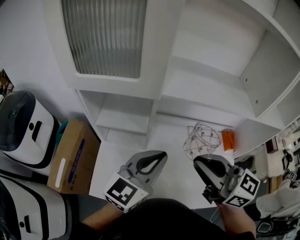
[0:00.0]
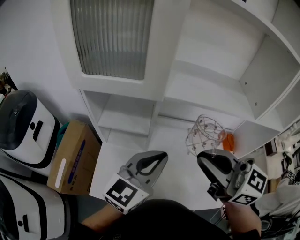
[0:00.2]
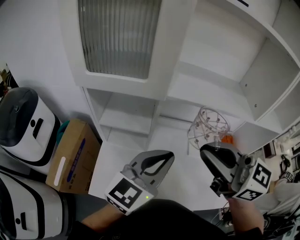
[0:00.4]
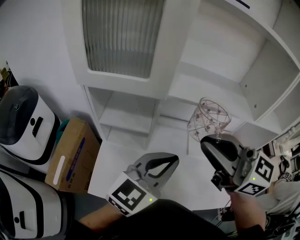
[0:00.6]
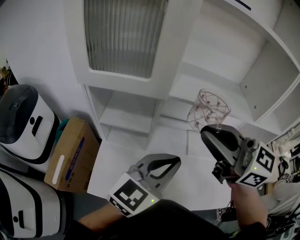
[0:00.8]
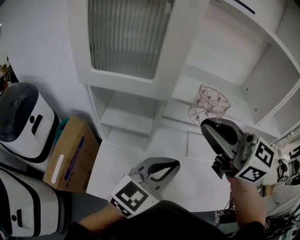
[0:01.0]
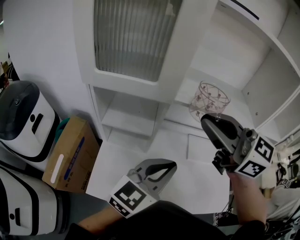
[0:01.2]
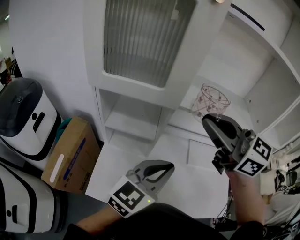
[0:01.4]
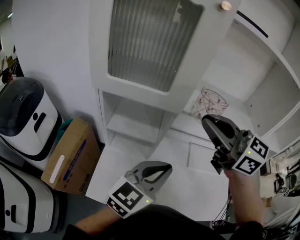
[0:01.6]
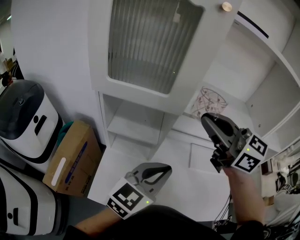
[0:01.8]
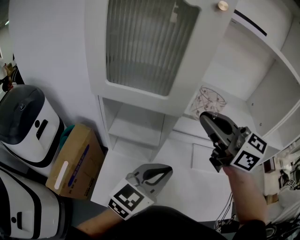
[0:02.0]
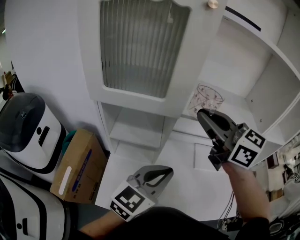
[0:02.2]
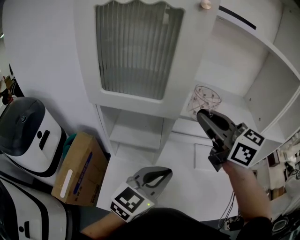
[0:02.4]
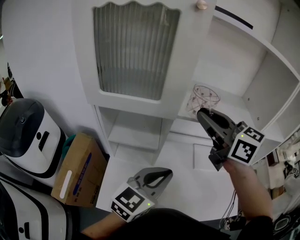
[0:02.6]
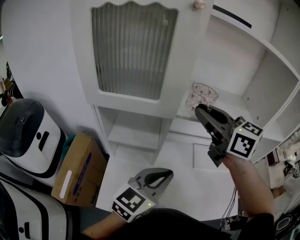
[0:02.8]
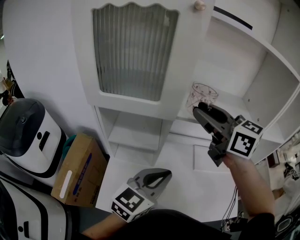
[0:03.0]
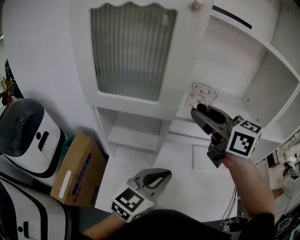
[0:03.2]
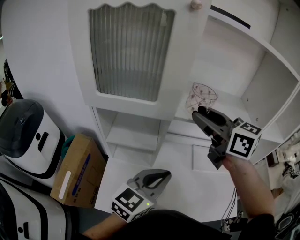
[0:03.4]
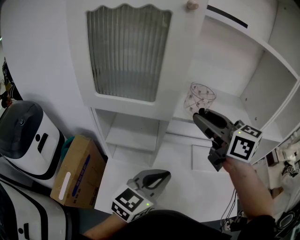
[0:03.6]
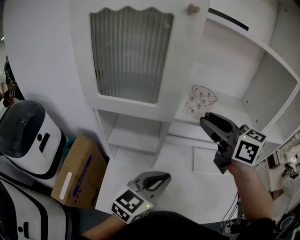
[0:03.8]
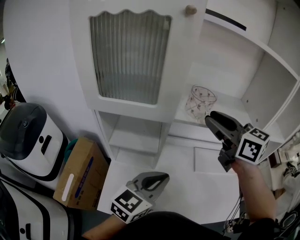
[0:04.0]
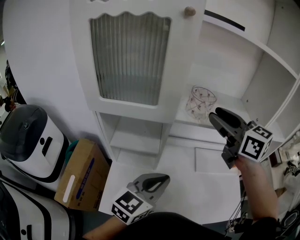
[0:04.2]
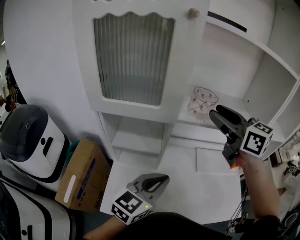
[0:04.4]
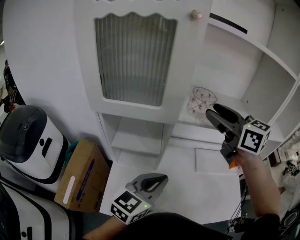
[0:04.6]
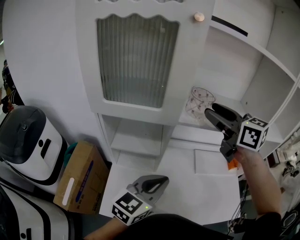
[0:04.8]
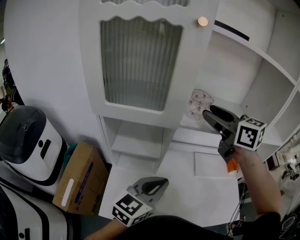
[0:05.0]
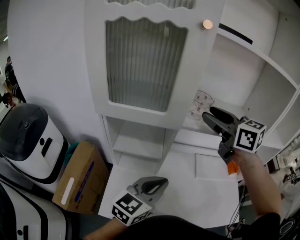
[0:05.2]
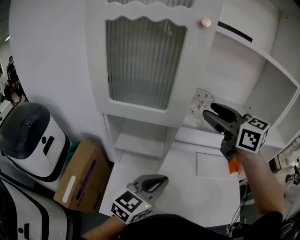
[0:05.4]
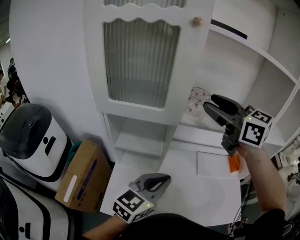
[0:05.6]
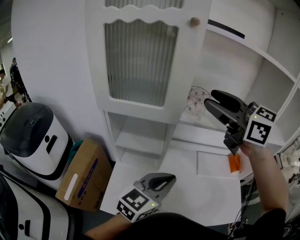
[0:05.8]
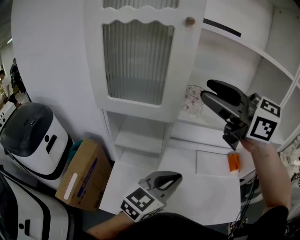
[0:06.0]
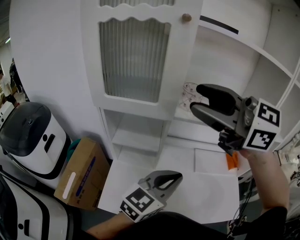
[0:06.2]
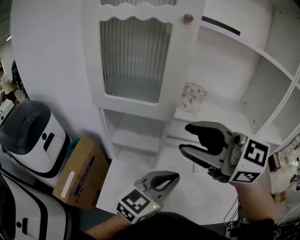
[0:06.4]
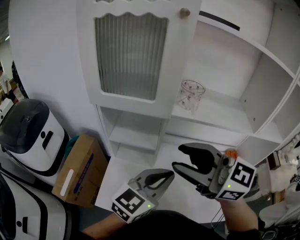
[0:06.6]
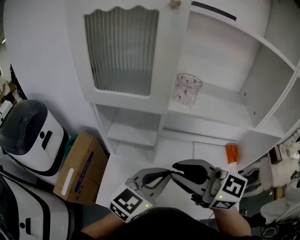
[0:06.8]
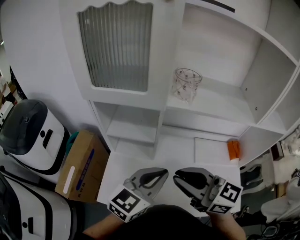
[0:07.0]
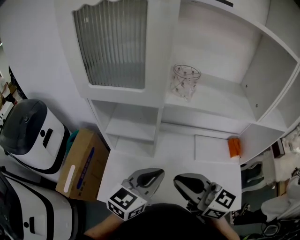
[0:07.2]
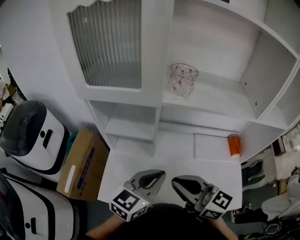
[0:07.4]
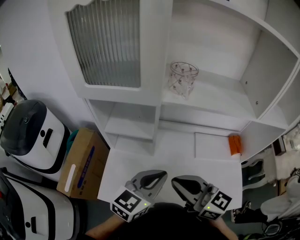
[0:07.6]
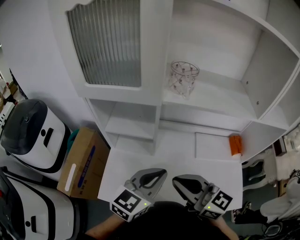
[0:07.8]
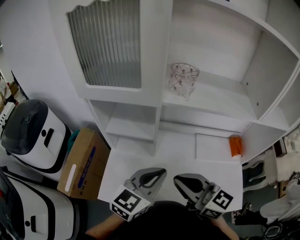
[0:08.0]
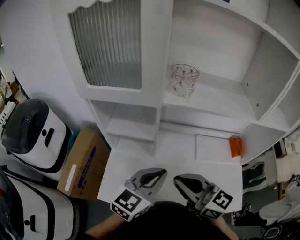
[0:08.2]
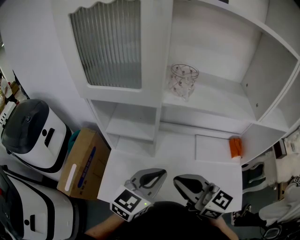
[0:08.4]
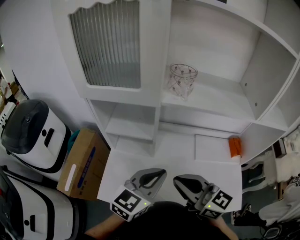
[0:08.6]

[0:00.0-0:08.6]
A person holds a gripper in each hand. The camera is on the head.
0:00.0 to 0:01.4: The right gripper goes approximately 15 cm upward and forward.
0:01.4 to 0:02.8: The right gripper shifts about 5 cm forward.
0:02.8 to 0:04.4: The right gripper travels to the right by about 5 cm, and opens.
0:04.4 to 0:05.8: The right gripper goes about 10 cm upward and to the left.
0:05.8 to 0:07.2: The right gripper heads downward and backward, covering approximately 30 cm, rotates about 20 degrees, and closes its fingers.
0:07.2 to 0:08.6: The grippers make only small movements.

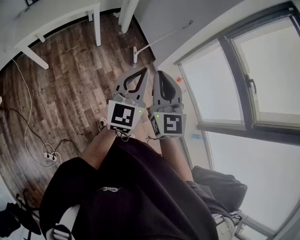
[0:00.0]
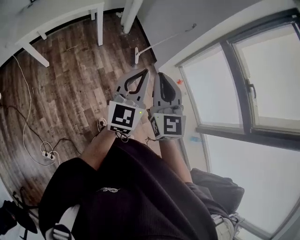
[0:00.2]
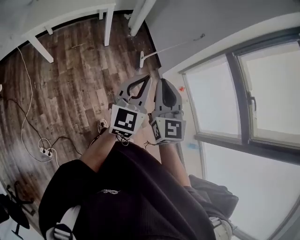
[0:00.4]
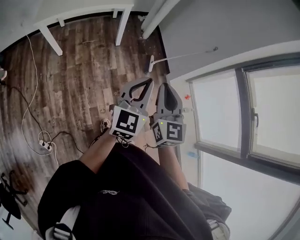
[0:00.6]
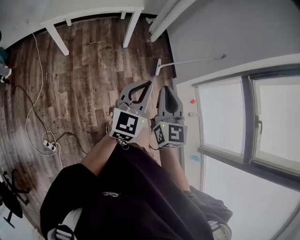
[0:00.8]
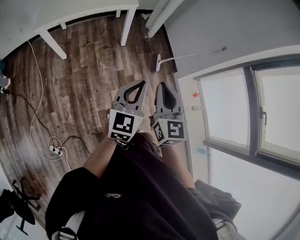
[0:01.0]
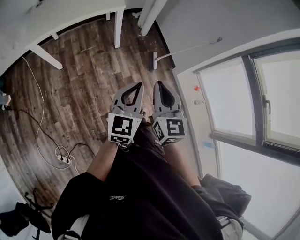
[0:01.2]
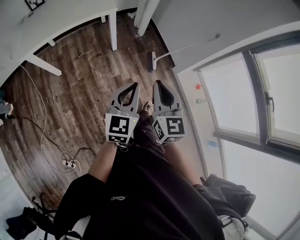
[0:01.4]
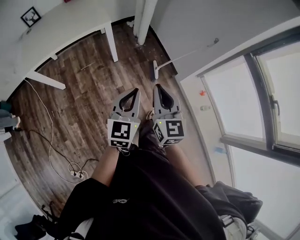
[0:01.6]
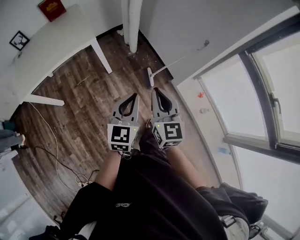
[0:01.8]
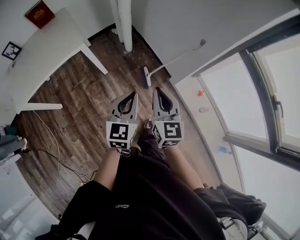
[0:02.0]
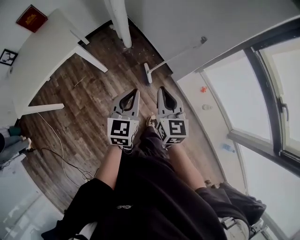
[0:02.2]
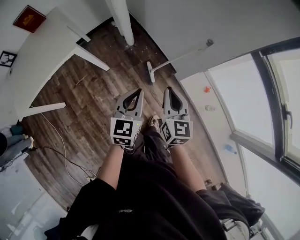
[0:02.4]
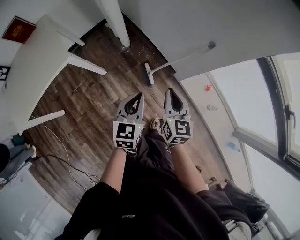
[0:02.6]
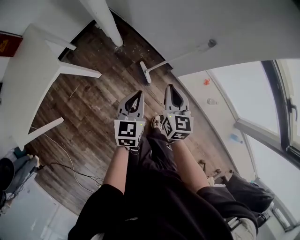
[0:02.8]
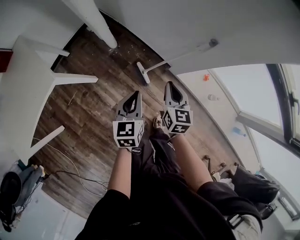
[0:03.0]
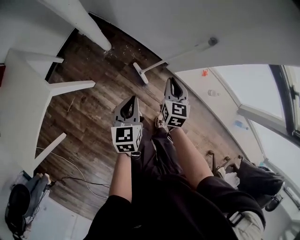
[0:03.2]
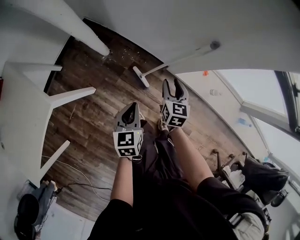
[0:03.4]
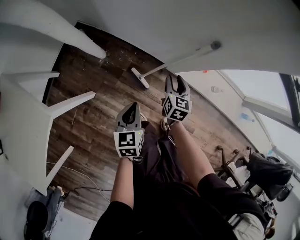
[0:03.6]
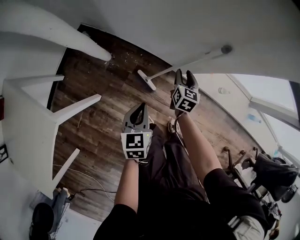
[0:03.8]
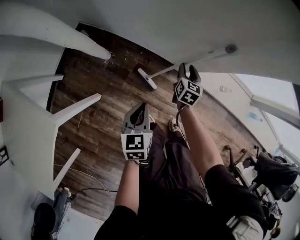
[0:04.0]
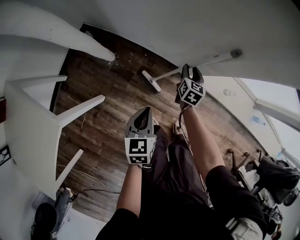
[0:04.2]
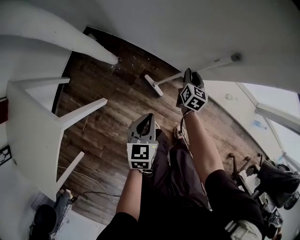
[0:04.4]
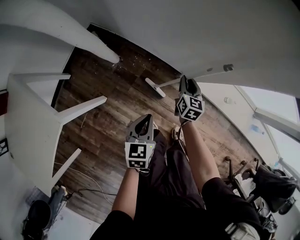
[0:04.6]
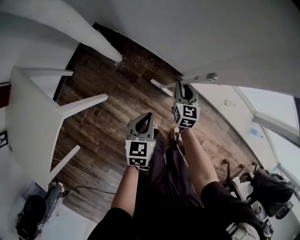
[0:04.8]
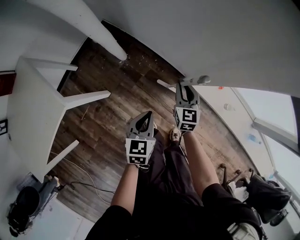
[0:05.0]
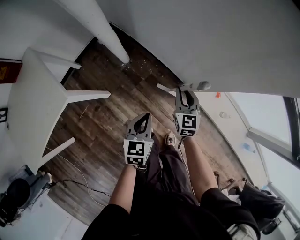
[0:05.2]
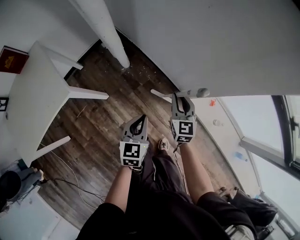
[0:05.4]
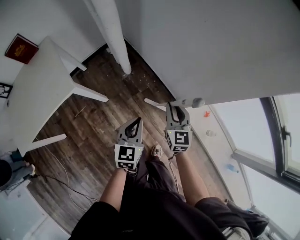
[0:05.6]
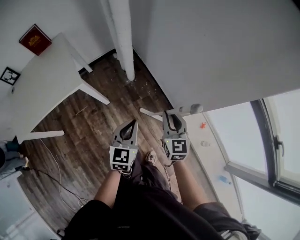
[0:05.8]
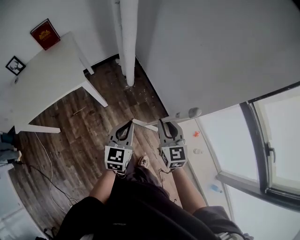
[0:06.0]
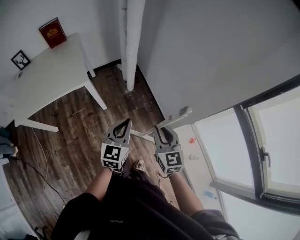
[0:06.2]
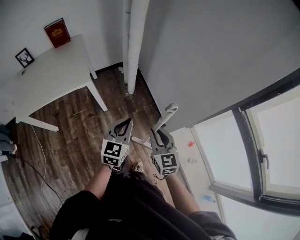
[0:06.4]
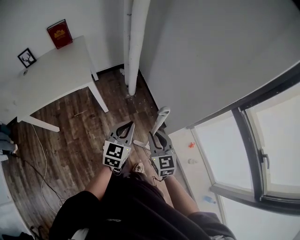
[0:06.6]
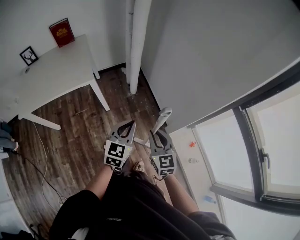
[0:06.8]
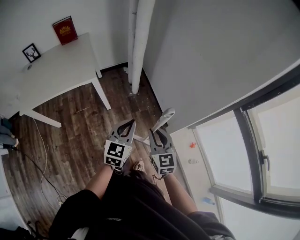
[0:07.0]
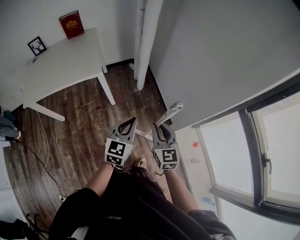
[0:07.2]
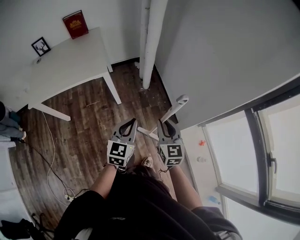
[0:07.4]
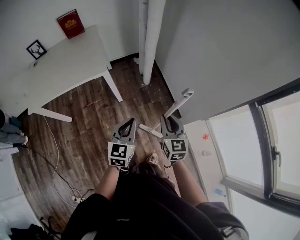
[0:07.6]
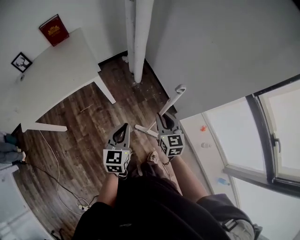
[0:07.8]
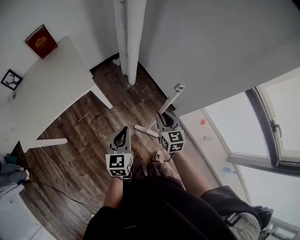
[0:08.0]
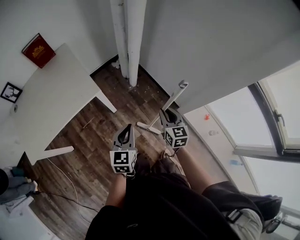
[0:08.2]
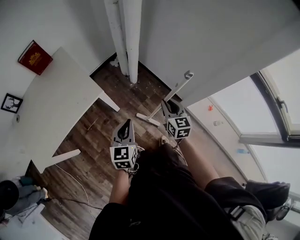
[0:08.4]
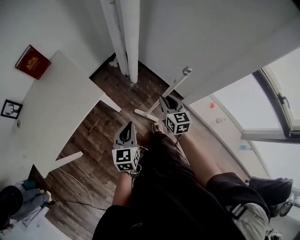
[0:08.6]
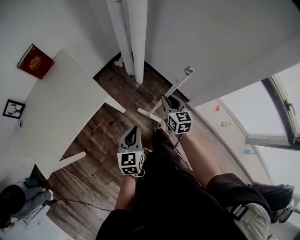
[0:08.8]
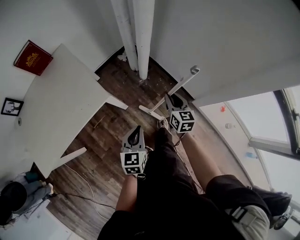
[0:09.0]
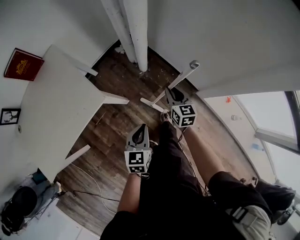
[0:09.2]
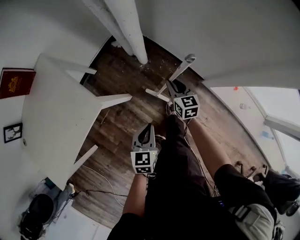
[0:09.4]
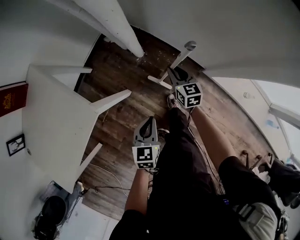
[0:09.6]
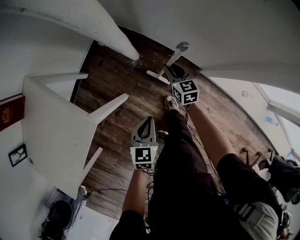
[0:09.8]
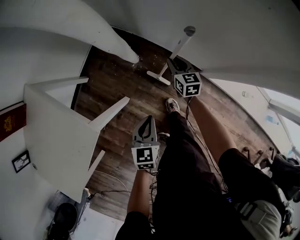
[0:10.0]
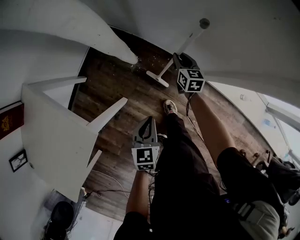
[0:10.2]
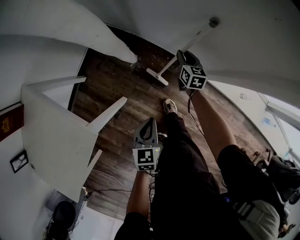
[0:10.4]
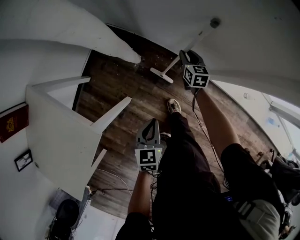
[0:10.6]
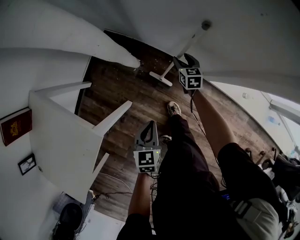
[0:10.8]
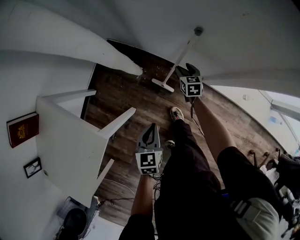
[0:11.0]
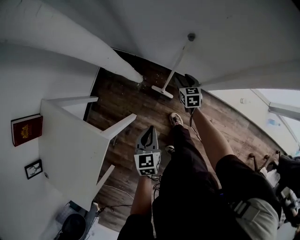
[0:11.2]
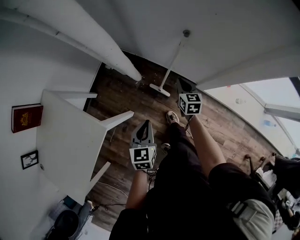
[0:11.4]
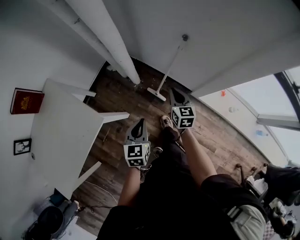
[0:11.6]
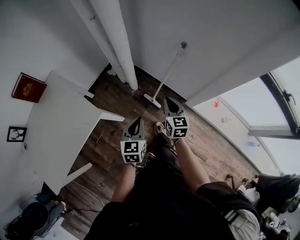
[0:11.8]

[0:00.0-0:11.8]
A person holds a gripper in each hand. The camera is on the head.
0:00.0 to 0:01.4: Both grippers travel together to the left, forward and downward, approximately 20 cm.
0:01.4 to 0:03.0: Both grippers are carried forward, approximately 40 cm. The two grippers go approximately 25 cm downward. The left gripper changes its angle by some 20 degrees; the right gripper swivels approximately 40 degrees.
0:03.0 to 0:04.4: The right gripper travels downward and forward by roughly 25 cm, and swivels about 30 degrees. Meanwhile the left gripper shifts approximately 10 cm downward.
0:04.4 to 0:06.0: The left gripper moves upward, about 25 cm, and rotates roughly 30 degrees. Meanwhile the right gripper heads upward, covering some 35 cm, and turns by roughly 60 degrees.
0:06.0 to 0:07.4: The left gripper shifts some 5 cm backward, while the right gripper shifts about 10 cm to the left and backward.
0:07.4 to 0:08.8: The right gripper heads forward, to the left and downward, covering approximately 25 cm, and swivels roughly 30 degrees. The left gripper travels to the left, forward and downward by approximately 25 cm.
0:08.8 to 0:10.4: The left gripper travels forward, downward and to the right by approximately 25 cm, and turns by roughly 20 degrees, while the right gripper shifts some 40 cm forward, downward and to the right, and changes its angle by some 30 degrees.
0:10.4 to 0:11.8: The right gripper moves backward and upward, roughly 35 cm, and opens, then closes again. The left gripper is displaced upward and backward by roughly 20 cm.

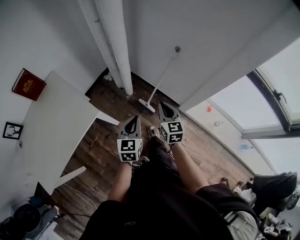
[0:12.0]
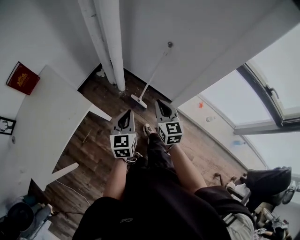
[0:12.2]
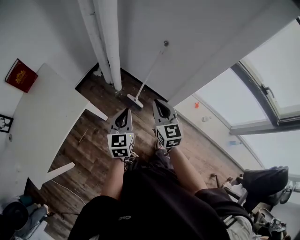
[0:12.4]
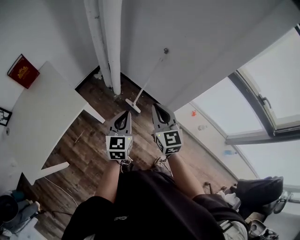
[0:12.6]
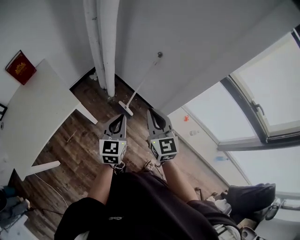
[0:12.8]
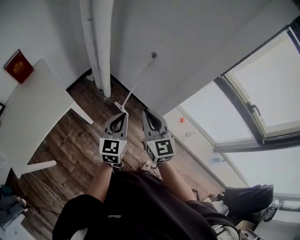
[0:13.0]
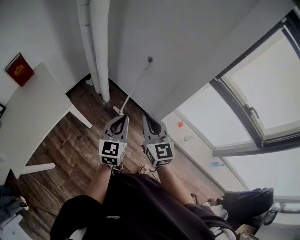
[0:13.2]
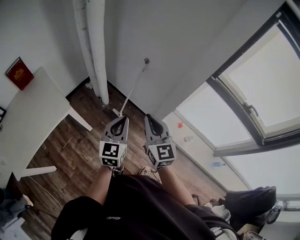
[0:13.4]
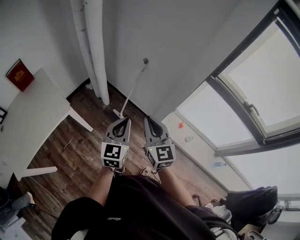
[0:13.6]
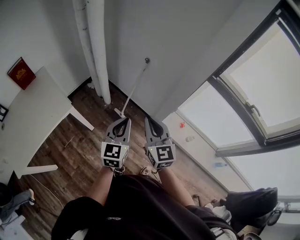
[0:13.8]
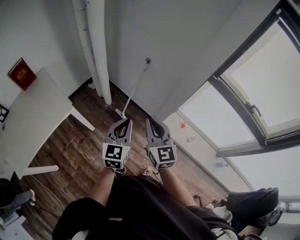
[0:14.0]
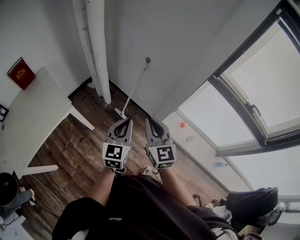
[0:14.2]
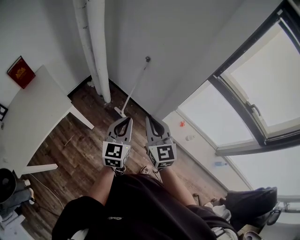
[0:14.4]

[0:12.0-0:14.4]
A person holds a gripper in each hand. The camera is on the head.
0:12.0 to 0:13.2: The left gripper moves to the right, upward and backward, about 20 cm. The right gripper travels upward, backward and to the right by some 20 cm.
0:13.2 to 0:14.4: The grippers make only small movements.
